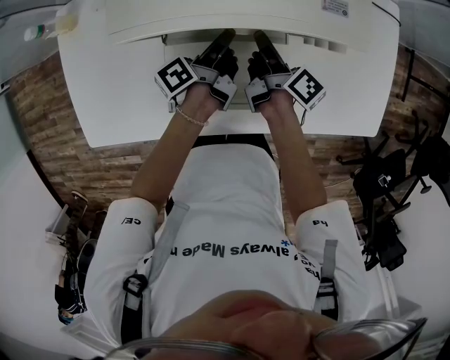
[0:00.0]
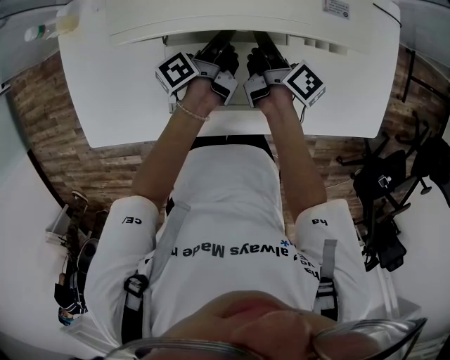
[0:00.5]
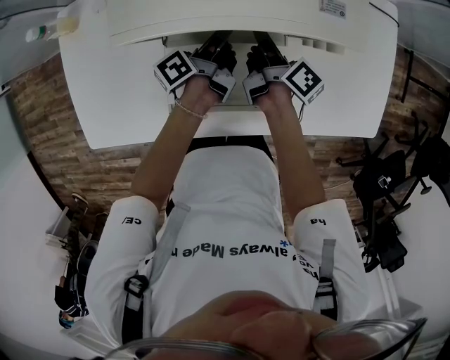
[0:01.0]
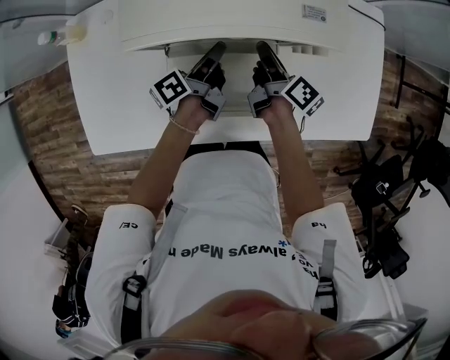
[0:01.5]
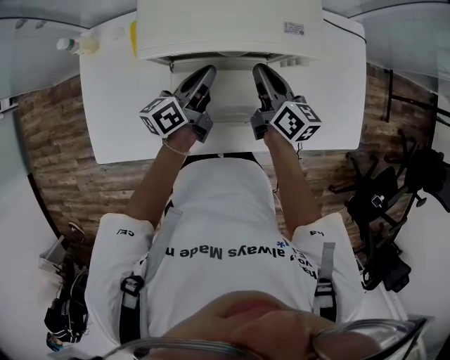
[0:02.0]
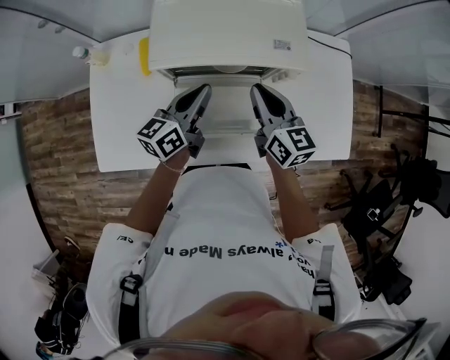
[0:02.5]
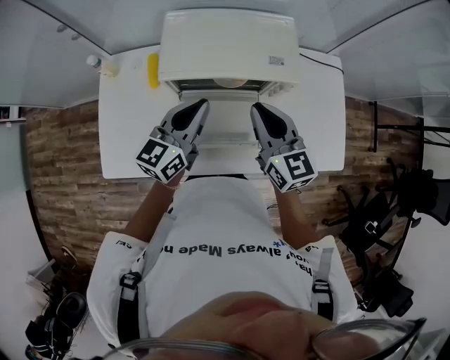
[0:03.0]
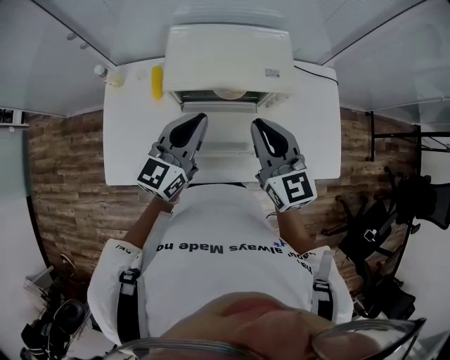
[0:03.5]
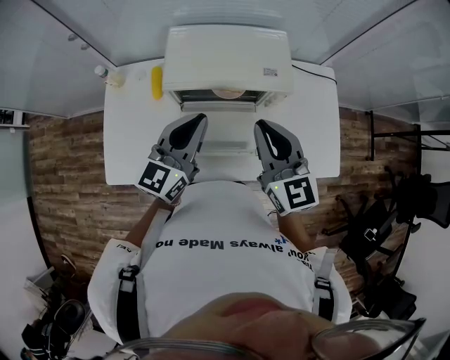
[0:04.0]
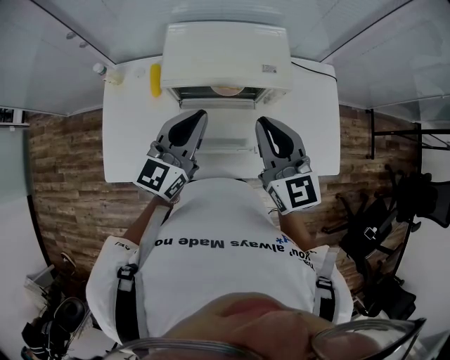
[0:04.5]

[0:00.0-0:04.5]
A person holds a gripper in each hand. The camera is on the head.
0:00.0 to 0:02.0: Both grippers move upward, approximately 10 cm. The right gripper rotates approximately 40 degrees. Meanwhile the left gripper swivels some 30 degrees.
0:02.0 to 0:04.5: The left gripper travels upward by about 20 cm, and rolls clockwise, seen from behind, by approximately 50 degrees. The right gripper travels upward and backward by about 25 cm, and rotates around the line of its fingers by approximately 40 degrees, counterclockwise from behind.

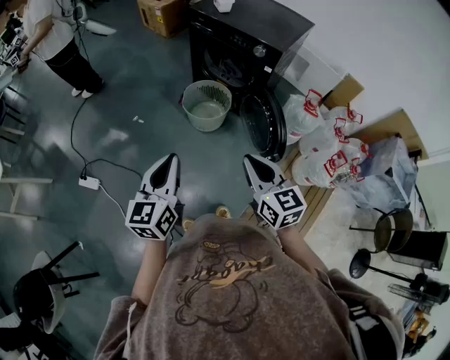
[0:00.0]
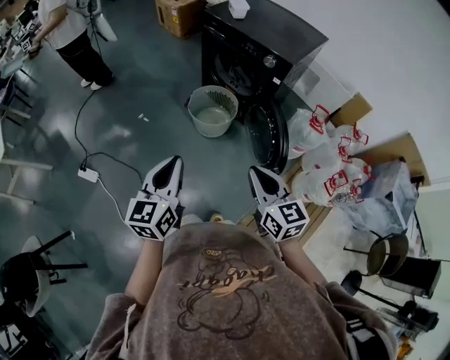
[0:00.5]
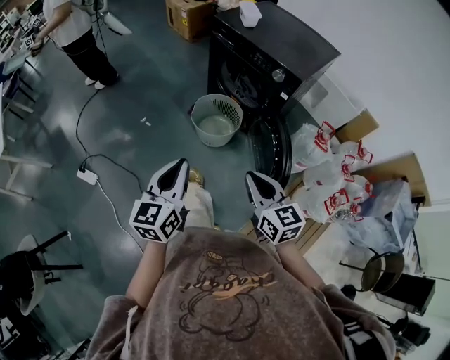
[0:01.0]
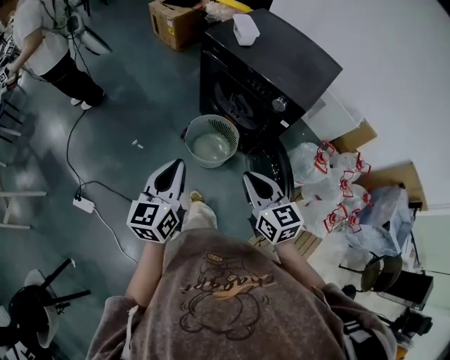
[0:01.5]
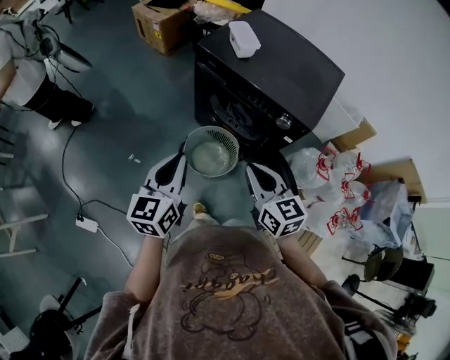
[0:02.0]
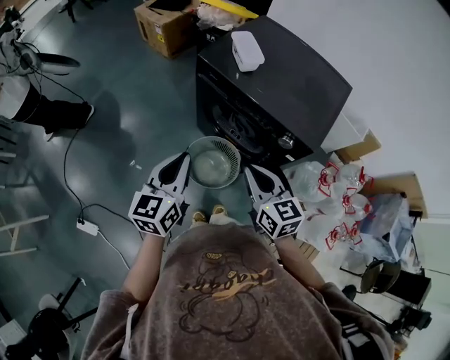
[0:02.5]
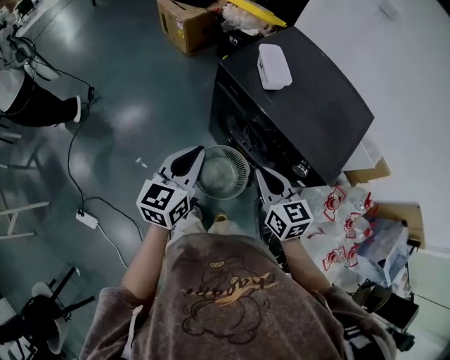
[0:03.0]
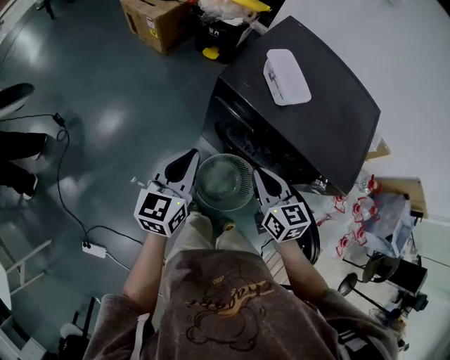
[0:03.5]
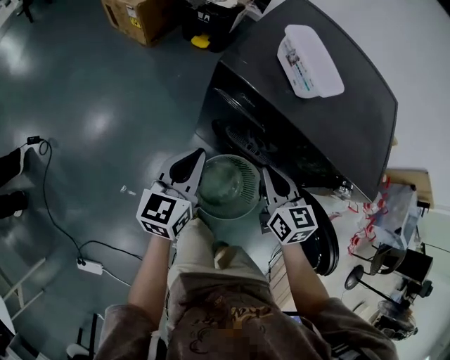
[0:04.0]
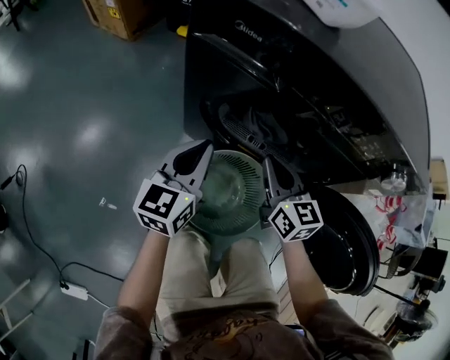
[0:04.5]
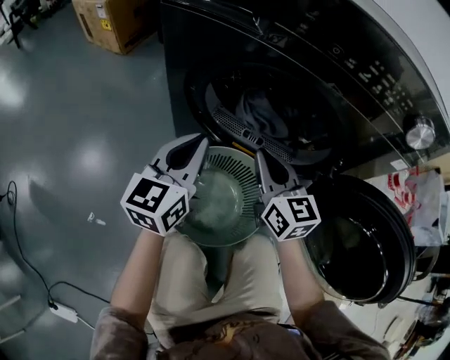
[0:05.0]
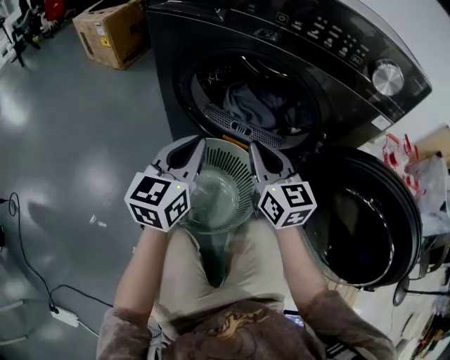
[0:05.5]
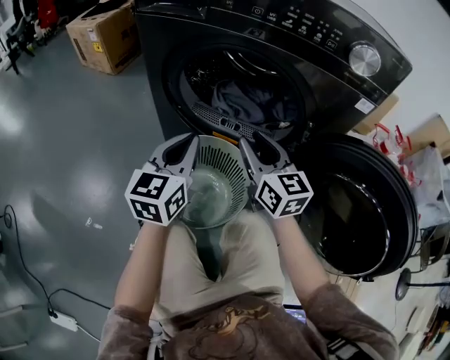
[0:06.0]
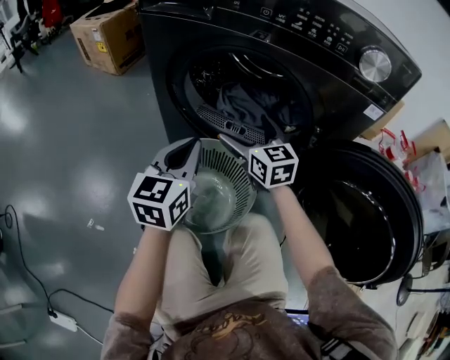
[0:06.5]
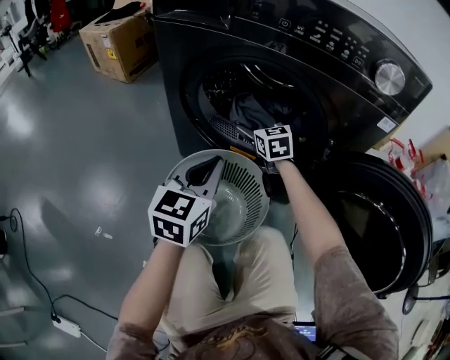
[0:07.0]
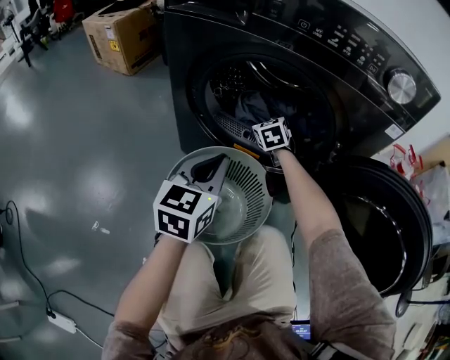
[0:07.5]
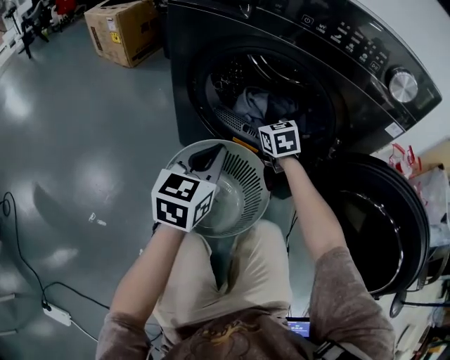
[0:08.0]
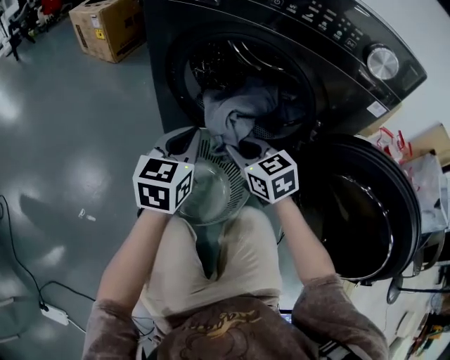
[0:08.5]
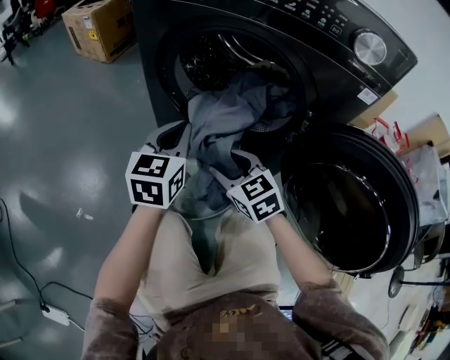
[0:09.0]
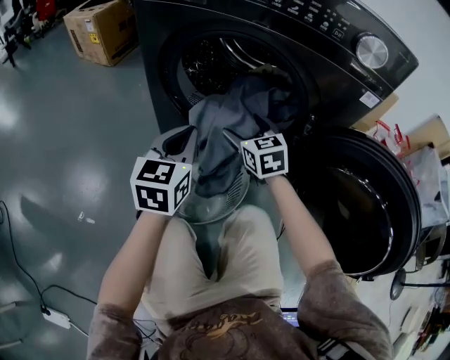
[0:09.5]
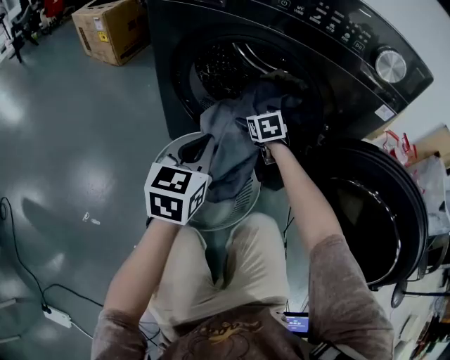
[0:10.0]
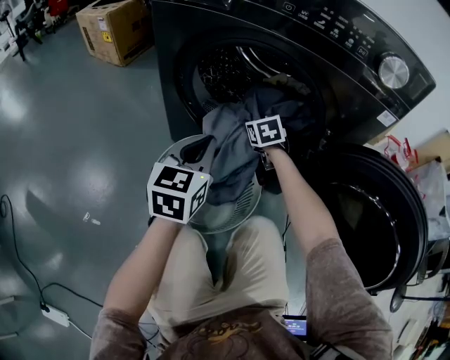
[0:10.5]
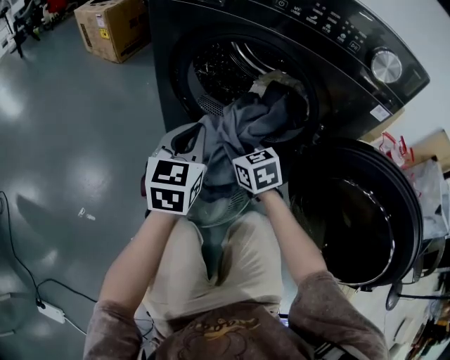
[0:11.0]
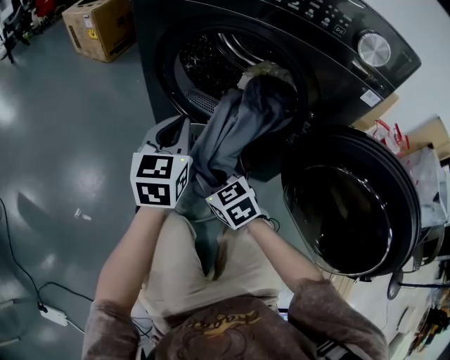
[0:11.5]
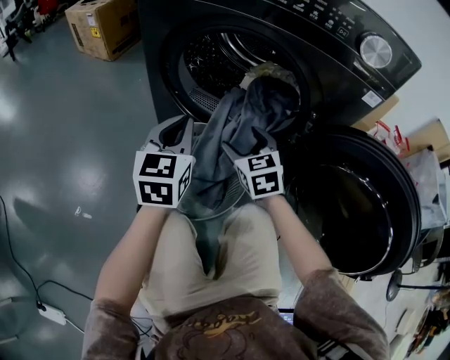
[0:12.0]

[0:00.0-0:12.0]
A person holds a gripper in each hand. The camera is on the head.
0:00.0 to 0:02.0: The two grippers go roughly 40 cm forward.
0:02.0 to 0:04.0: Both grippers travel together forward and downward, roughly 35 cm.
0:04.0 to 0:06.0: The two grippers go some 25 cm downward and to the right. The right gripper rotates approximately 20 degrees.
0:06.0 to 0:08.0: The right gripper is displaced forward and downward by approximately 20 cm, swivels roughly 30 degrees, and opens, then closes once more.
0:08.0 to 0:10.0: The right gripper travels backward and back again, about 20 cm each way, and opens up.
0:10.0 to 0:12.0: The right gripper moves backward, roughly 15 cm, and closes, then reopens.

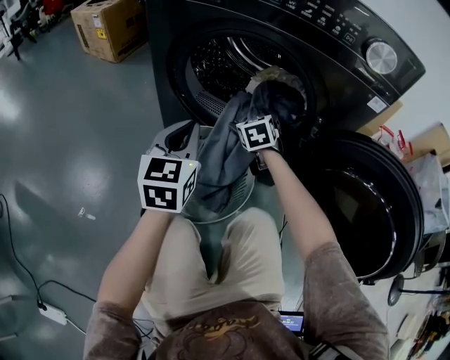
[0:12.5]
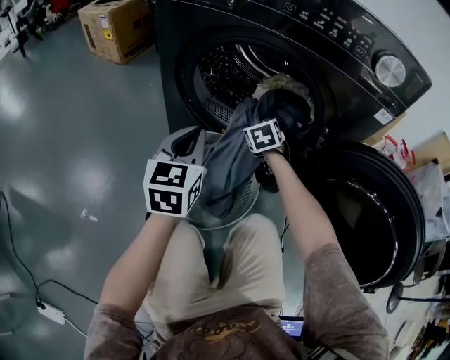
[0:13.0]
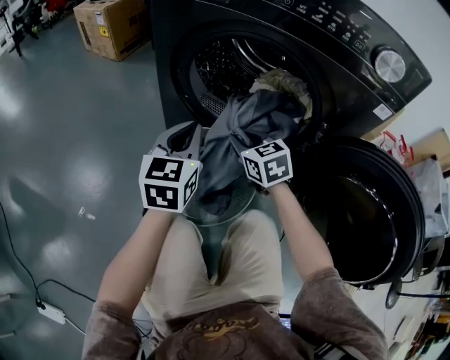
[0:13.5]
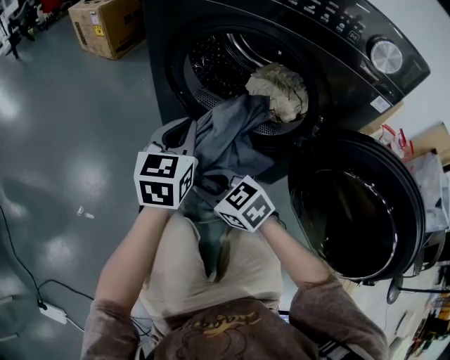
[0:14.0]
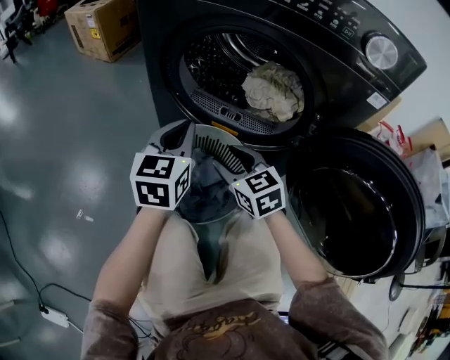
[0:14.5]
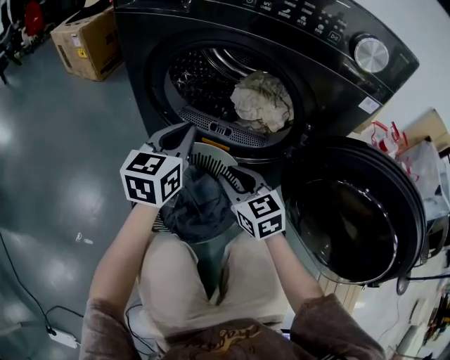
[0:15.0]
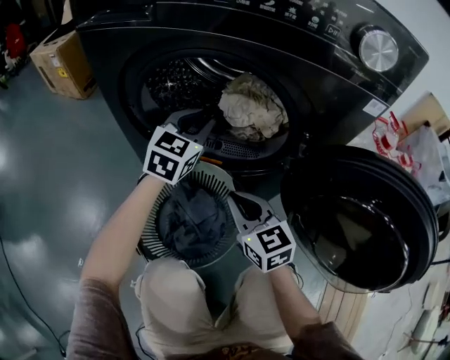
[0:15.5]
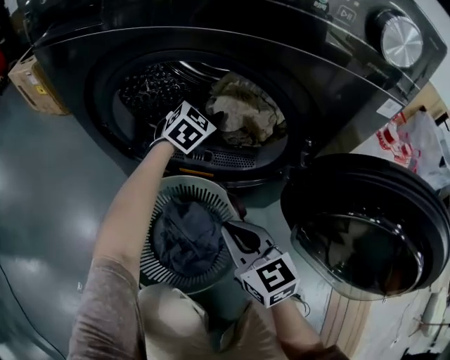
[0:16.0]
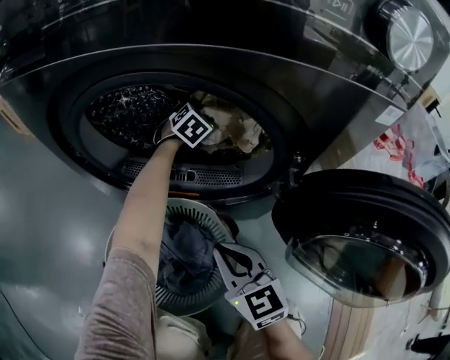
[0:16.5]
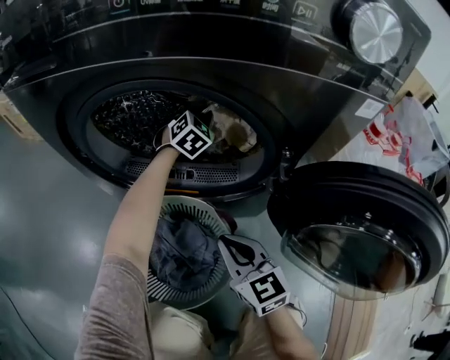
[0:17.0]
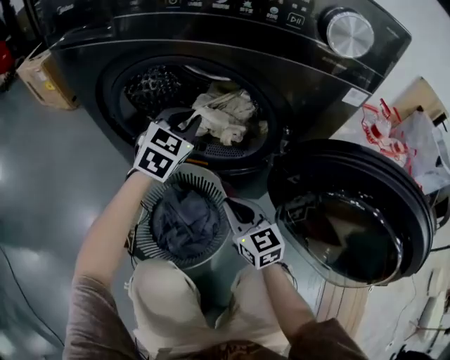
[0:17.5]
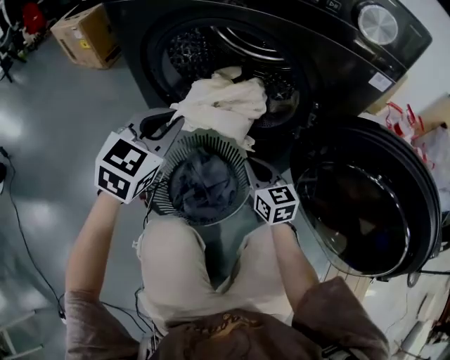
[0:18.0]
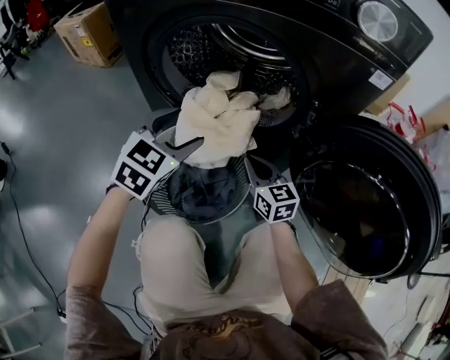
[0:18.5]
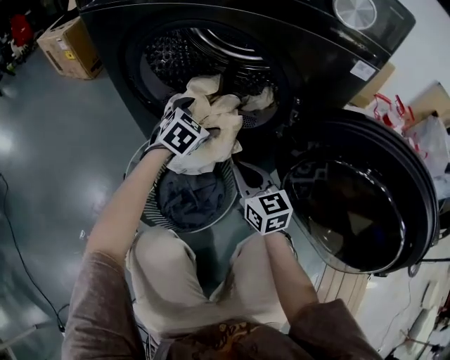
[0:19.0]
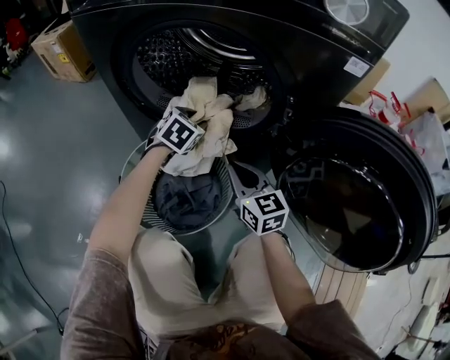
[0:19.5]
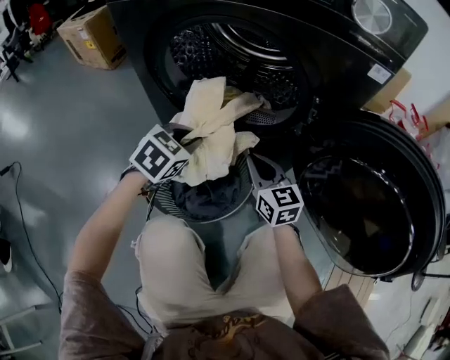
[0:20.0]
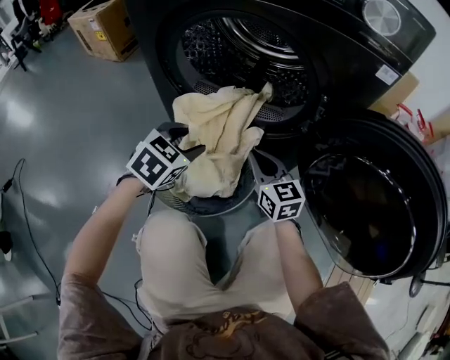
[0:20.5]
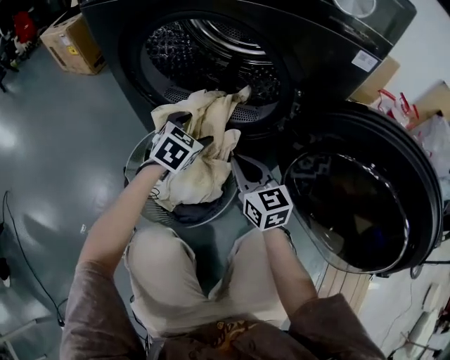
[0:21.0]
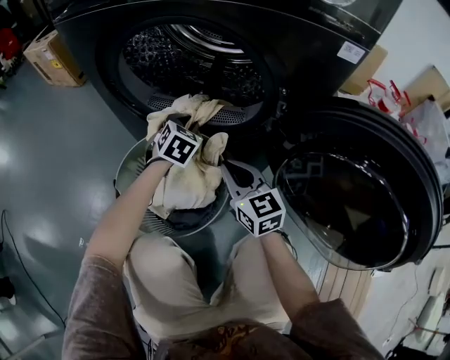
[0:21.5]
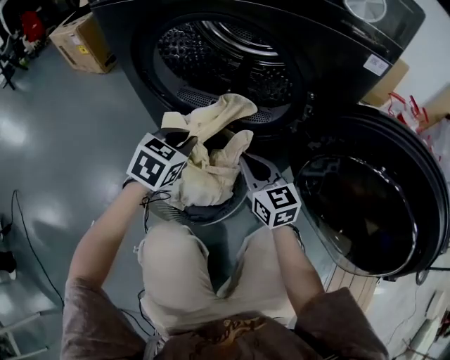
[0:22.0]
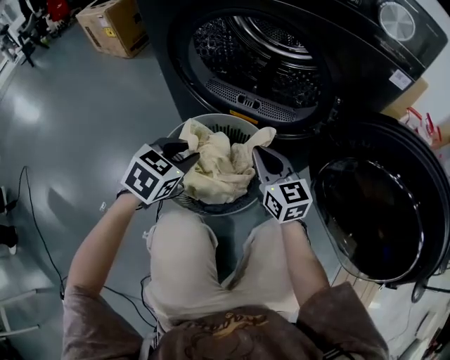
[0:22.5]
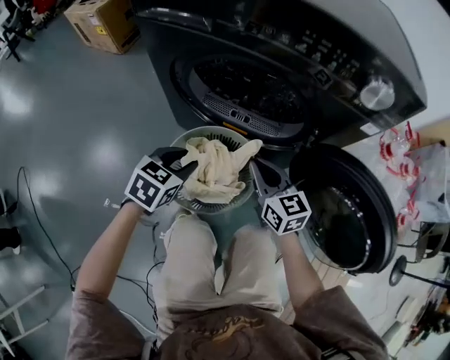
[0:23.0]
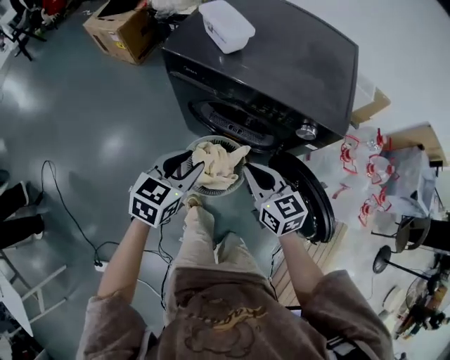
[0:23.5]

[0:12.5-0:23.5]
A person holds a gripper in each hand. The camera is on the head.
0:12.5 to 0:14.5: The right gripper swivels approximately 30 degrees, and closes up.
0:14.5 to 0:16.0: The right gripper shifts about 5 cm to the right, and closes up; the left gripper moves forward and to the right, roughly 35 cm, swivels roughly 50 degrees, and opens.
0:16.0 to 0:18.0: The left gripper shifts roughly 30 cm backward, to the left and upward, and closes. Meanwhile the right gripper ends up some 5 cm from where it was.
0:18.0 to 0:20.0: The left gripper travels downward by about 10 cm, turns by about 20 degrees, and opens, then closes again.
0:20.0 to 0:21.5: The left gripper travels forward, downward and to the right by about 15 cm, and opens, then closes once more.
0:21.5 to 0:23.5: The right gripper is displaced upward by some 40 cm. Meanwhile the left gripper travels upward and backward by some 50 cm, and swivels approximately 30 degrees.
